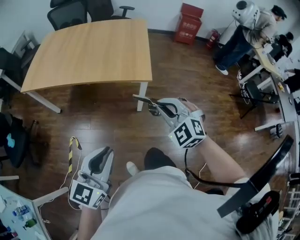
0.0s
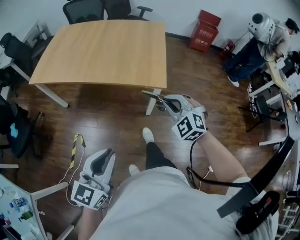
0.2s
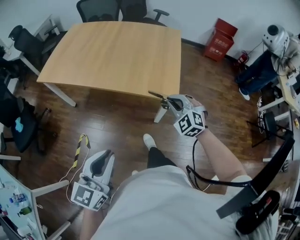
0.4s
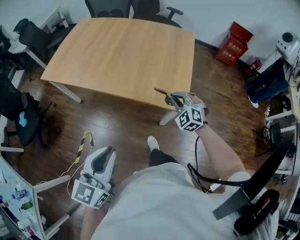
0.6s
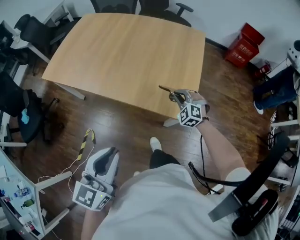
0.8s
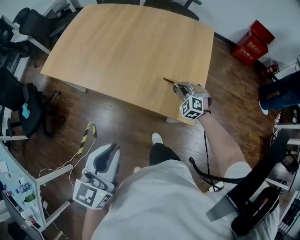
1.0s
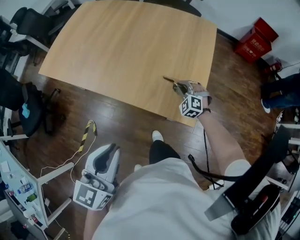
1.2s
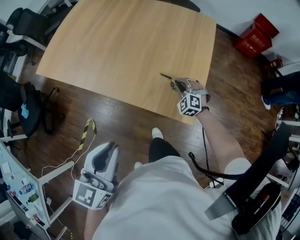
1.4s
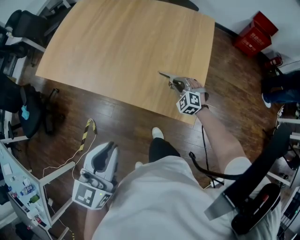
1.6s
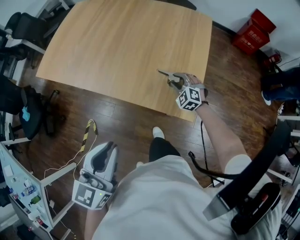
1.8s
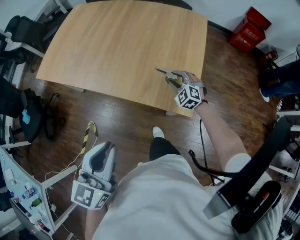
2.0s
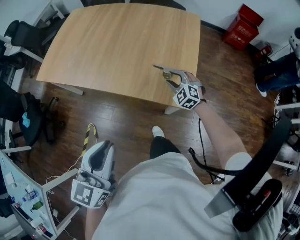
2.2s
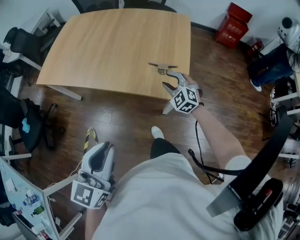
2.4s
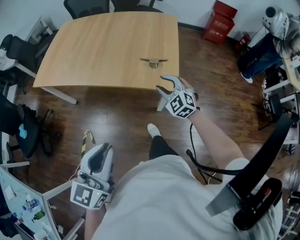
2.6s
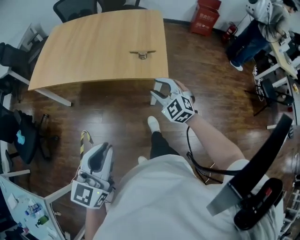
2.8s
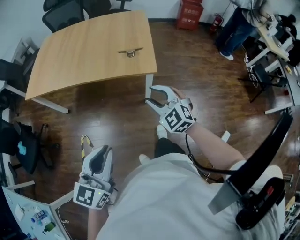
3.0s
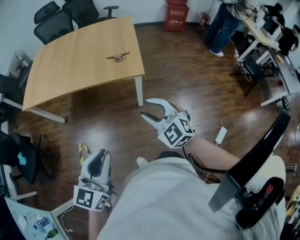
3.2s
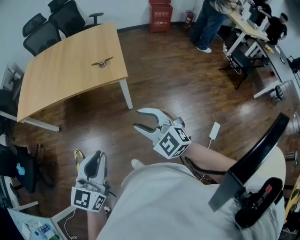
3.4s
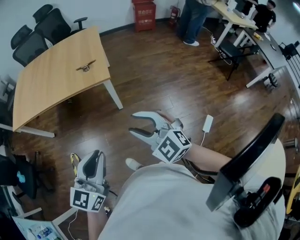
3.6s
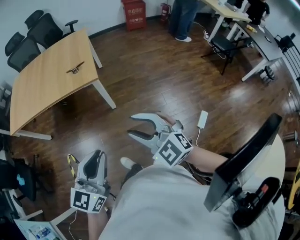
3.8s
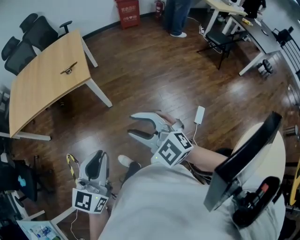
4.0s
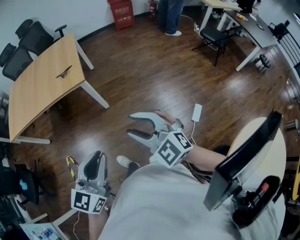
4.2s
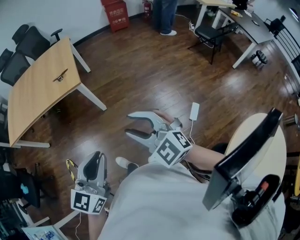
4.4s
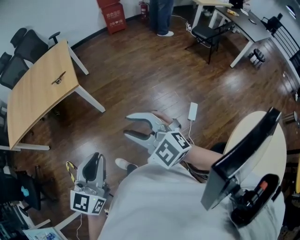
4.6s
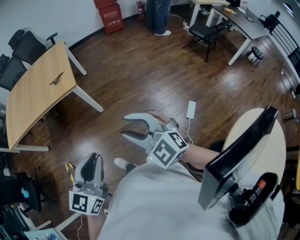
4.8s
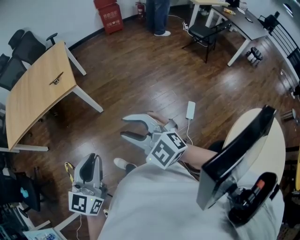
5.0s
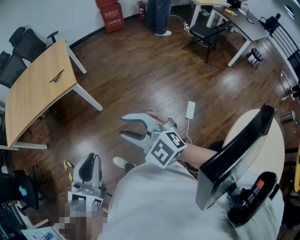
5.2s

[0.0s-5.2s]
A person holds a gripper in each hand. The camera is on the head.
0.0s to 1.8s: The left gripper is displaced forward by some 20 cm, and changes its angle by roughly 20 degrees. Meanwhile the right gripper heads forward and downward, covering about 50 cm, and opens its fingers.
1.8s to 3.4s: The right gripper goes some 50 cm backward and upward, and rotates some 30 degrees; the left gripper goes some 25 cm backward, and rotates roughly 30 degrees.
3.4s to 5.2s: Both grippers travel together to the right and backward, roughly 20 cm.

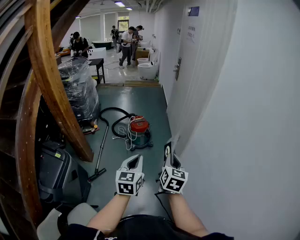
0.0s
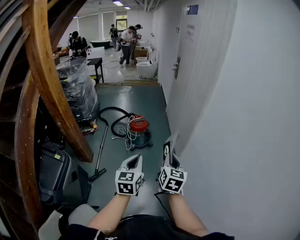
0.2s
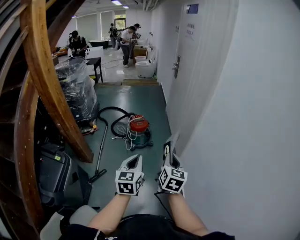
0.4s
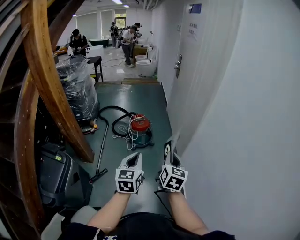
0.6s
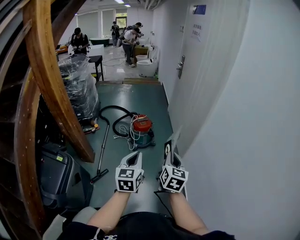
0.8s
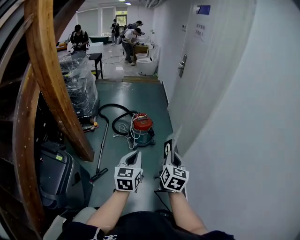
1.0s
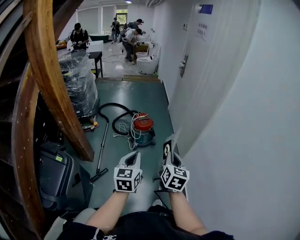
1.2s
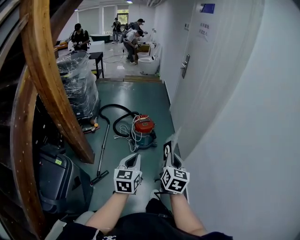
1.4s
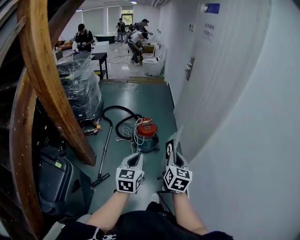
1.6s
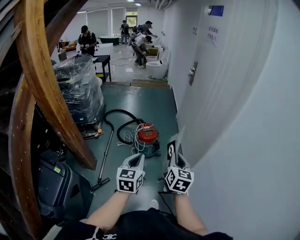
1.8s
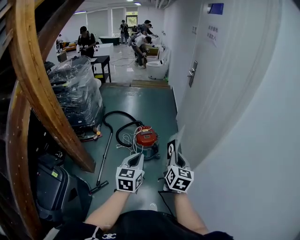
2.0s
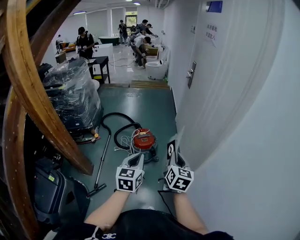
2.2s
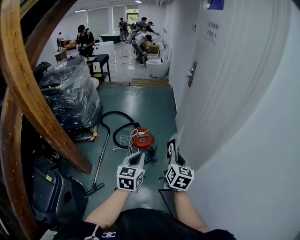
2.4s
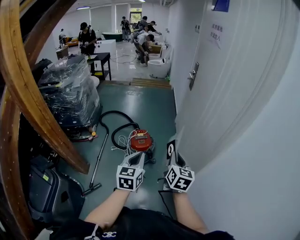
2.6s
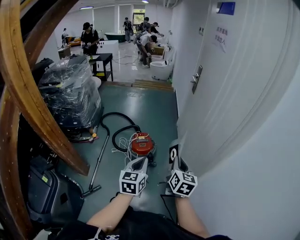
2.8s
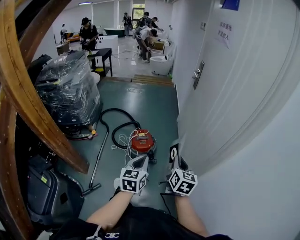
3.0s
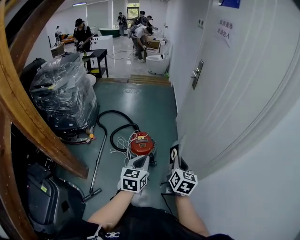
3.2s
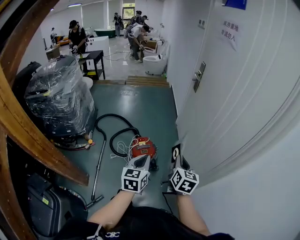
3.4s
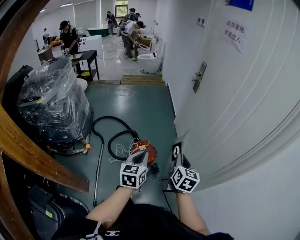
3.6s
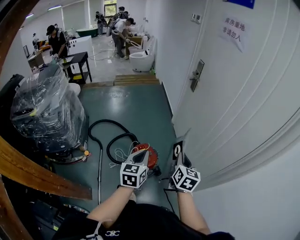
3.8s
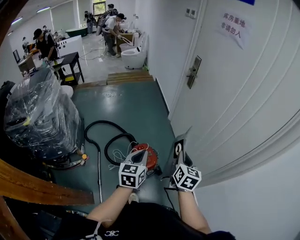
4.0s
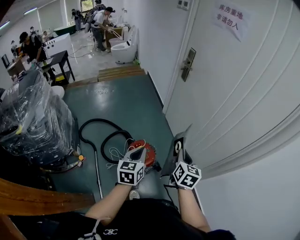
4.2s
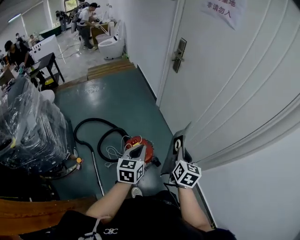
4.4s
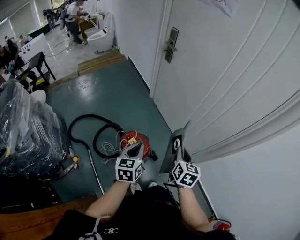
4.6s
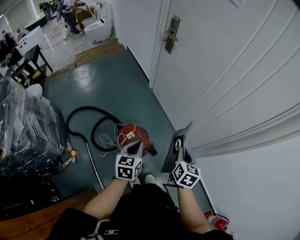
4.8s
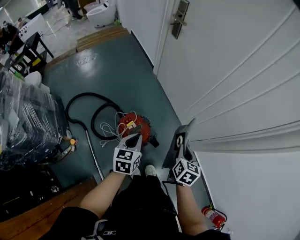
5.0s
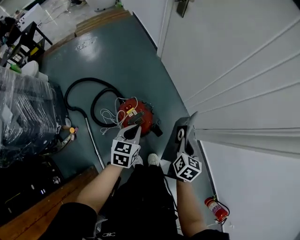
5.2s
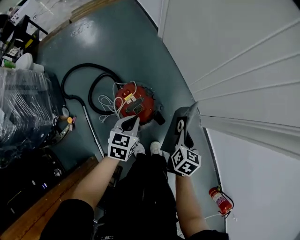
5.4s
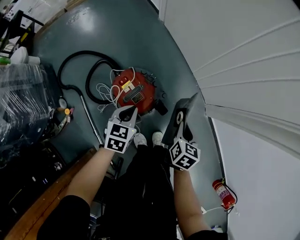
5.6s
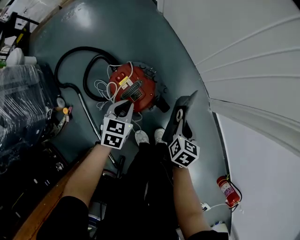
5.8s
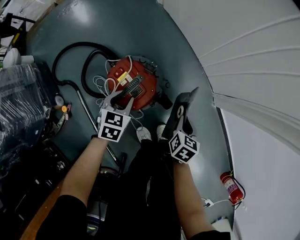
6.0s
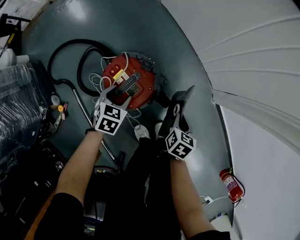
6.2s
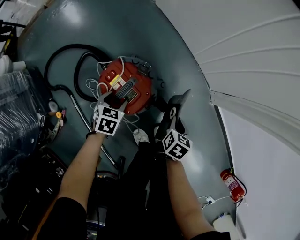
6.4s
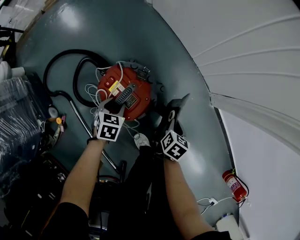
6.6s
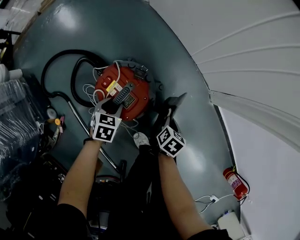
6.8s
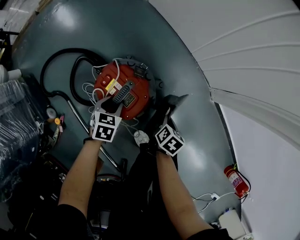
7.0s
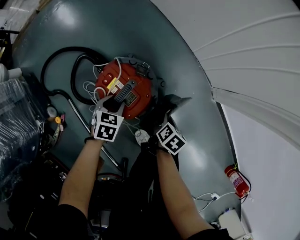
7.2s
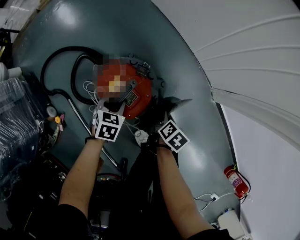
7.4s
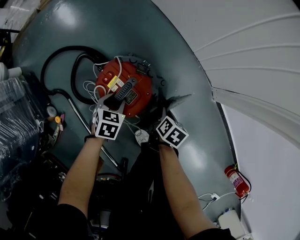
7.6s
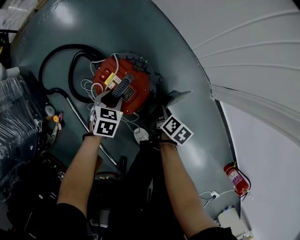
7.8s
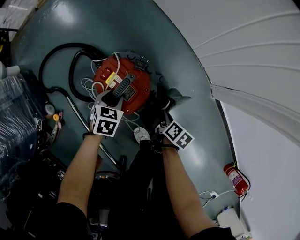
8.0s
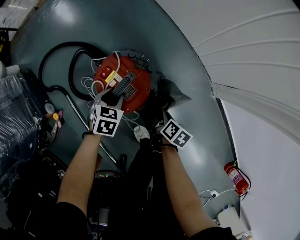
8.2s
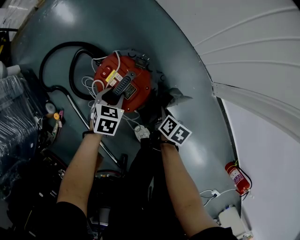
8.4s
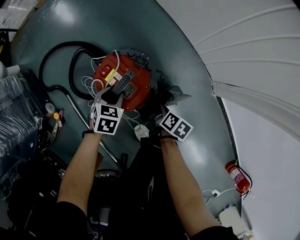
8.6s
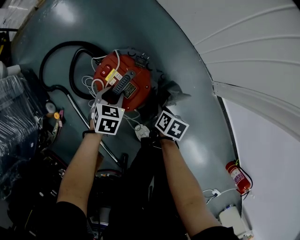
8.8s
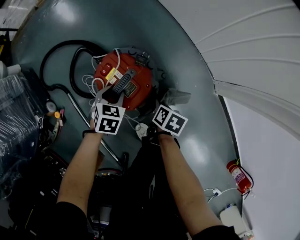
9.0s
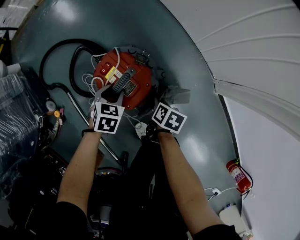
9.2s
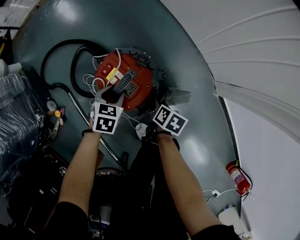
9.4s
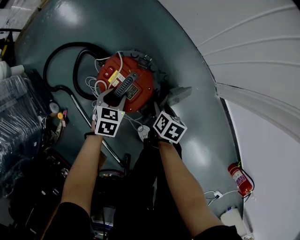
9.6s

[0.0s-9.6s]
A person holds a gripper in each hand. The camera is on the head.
0.0s to 1.6s: The two grippers go approximately 15 cm forward and to the left.
1.6s to 3.2s: The two grippers go some 30 cm forward.
3.2s to 4.8s: The left gripper moves roughly 30 cm, and changes its angle by approximately 30 degrees, while the right gripper shifts by some 20 cm, and swivels approximately 30 degrees.
4.8s to 6.4s: The two grippers go some 40 cm downward. The right gripper turns by some 30 degrees. The left gripper tips its fingers downward by approximately 30 degrees, and opens its fingers.
6.4s to 8.0s: The right gripper shifts some 5 cm downward, and changes its angle by approximately 30 degrees.
8.0s to 9.6s: The right gripper opens up.

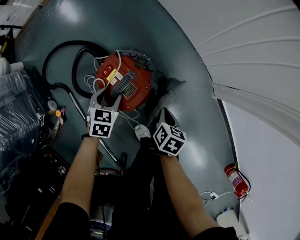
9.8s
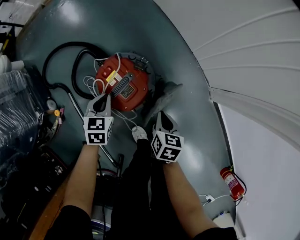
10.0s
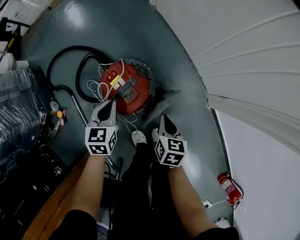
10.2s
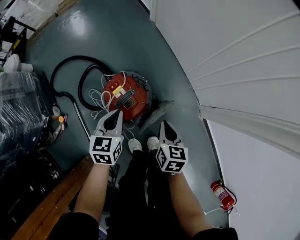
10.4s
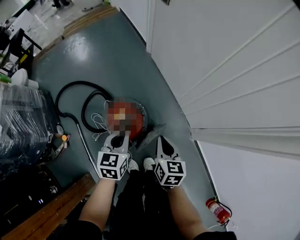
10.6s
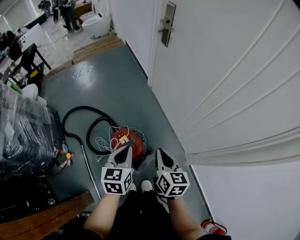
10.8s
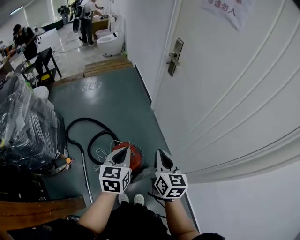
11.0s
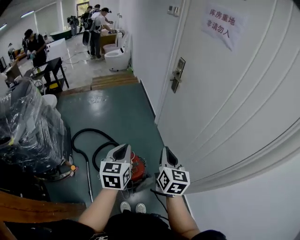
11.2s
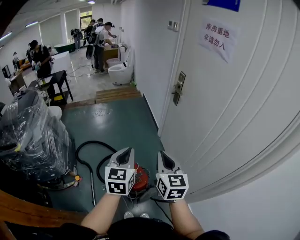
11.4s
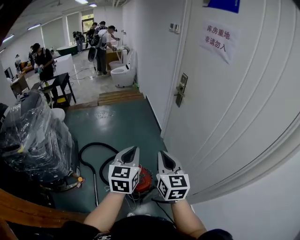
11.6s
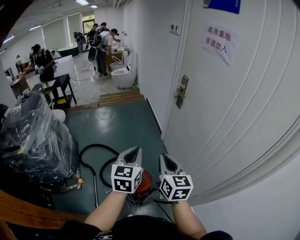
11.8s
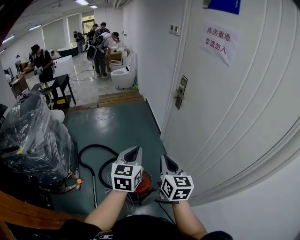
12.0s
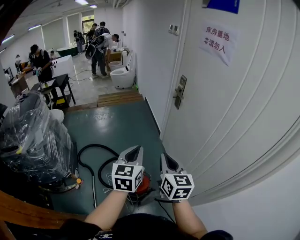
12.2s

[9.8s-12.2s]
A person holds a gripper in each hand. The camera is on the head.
9.8s to 11.0s: Both grippers travel together upward, roughly 50 cm. The left gripper angles its fingers upward, by some 30 degrees, and closes its fingers. Meanwhile the right gripper tips its fingers upward by roughly 40 degrees.
11.0s to 12.2s: Both grippers travel together upward, approximately 15 cm.

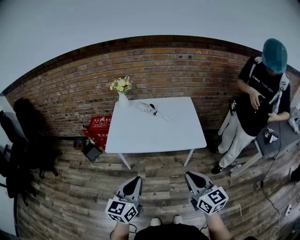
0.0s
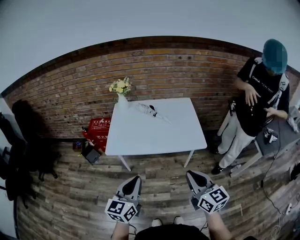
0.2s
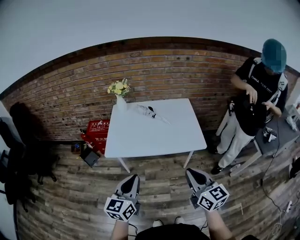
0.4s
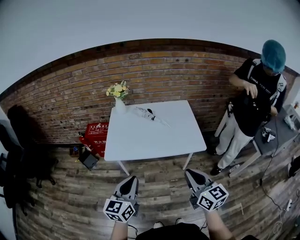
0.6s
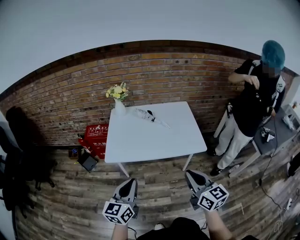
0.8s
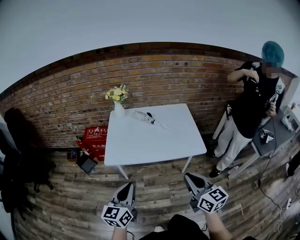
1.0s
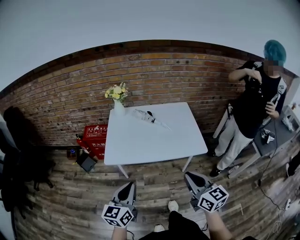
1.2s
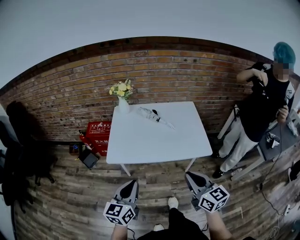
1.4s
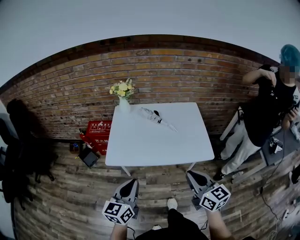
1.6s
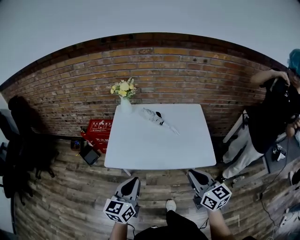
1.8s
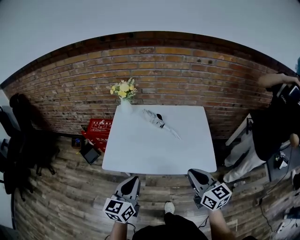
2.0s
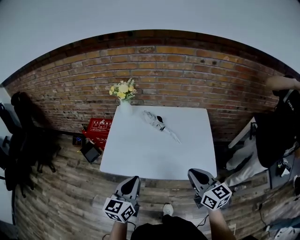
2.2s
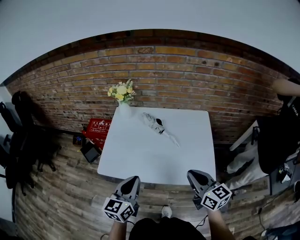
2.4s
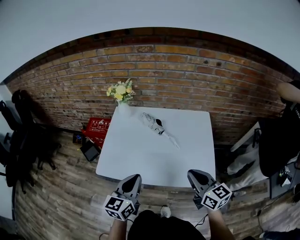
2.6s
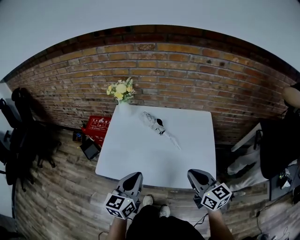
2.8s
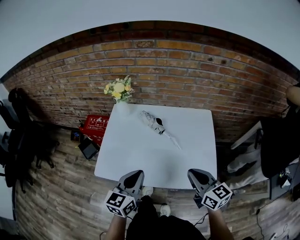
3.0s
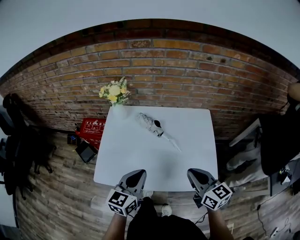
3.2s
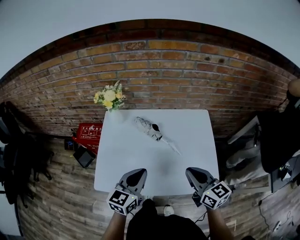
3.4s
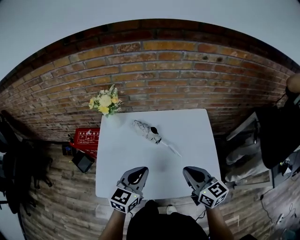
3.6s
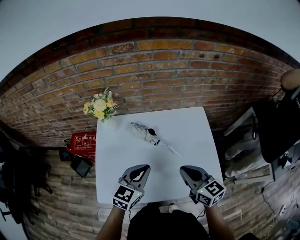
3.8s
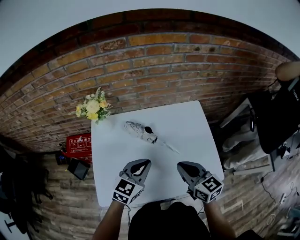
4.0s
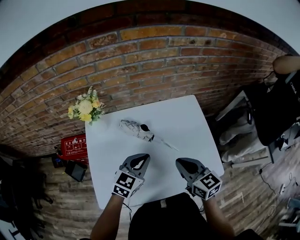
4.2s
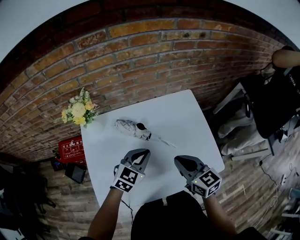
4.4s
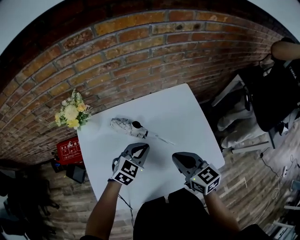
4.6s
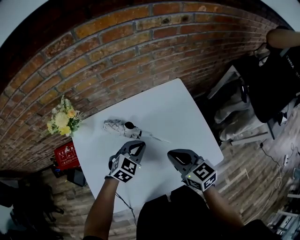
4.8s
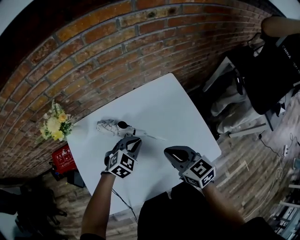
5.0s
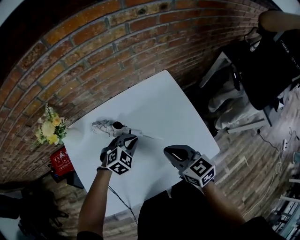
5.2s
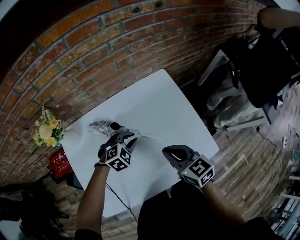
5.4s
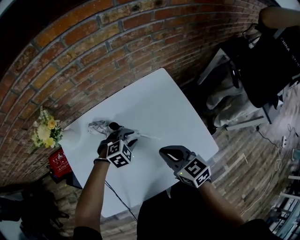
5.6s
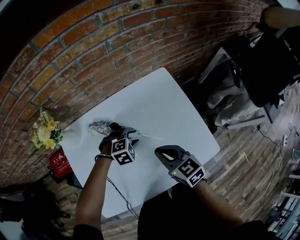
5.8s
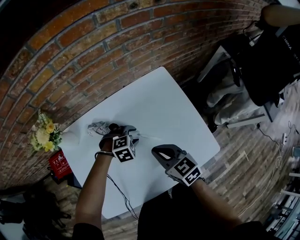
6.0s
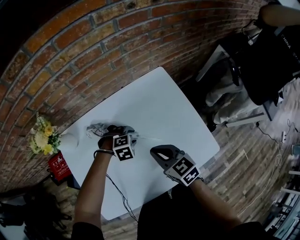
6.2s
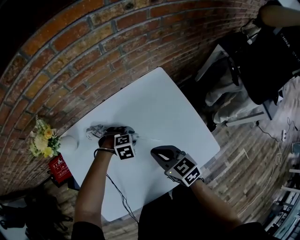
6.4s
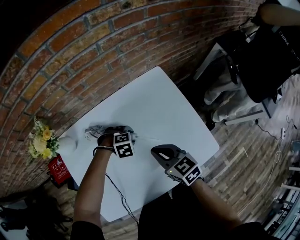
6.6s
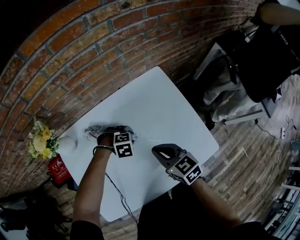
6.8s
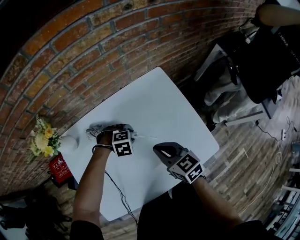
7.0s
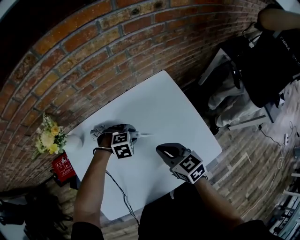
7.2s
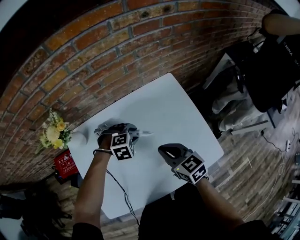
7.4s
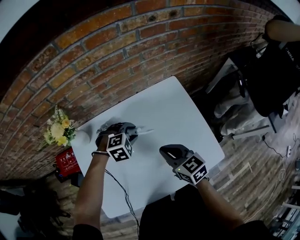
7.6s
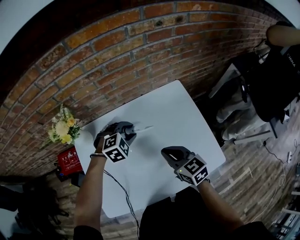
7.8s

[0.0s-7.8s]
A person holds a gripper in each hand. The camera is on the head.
0.0s to 1.6s: The left gripper heads forward and to the left, covering roughly 10 cm. The right gripper moves forward, roughly 10 cm.
1.6s to 3.2s: The right gripper travels forward by roughly 25 cm. The left gripper is displaced forward and to the right by about 25 cm.
3.2s to 4.6s: The right gripper travels forward, downward and to the left by about 15 cm. The left gripper shifts about 20 cm forward and downward, and turns by some 50 degrees.
4.6s to 6.2s: The left gripper travels downward by some 15 cm, tips its fingers downward by about 40 degrees, and opens up. Meanwhile the right gripper heads downward, covering about 5 cm.
6.2s to 7.8s: The left gripper heads upward, covering approximately 10 cm, and turns by some 20 degrees.
